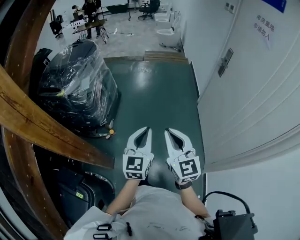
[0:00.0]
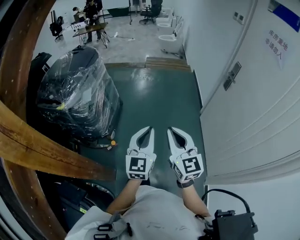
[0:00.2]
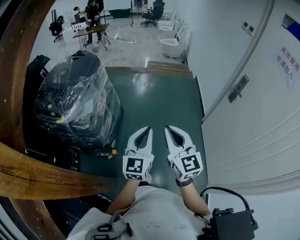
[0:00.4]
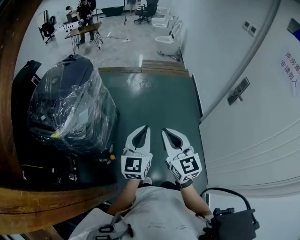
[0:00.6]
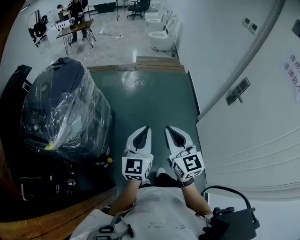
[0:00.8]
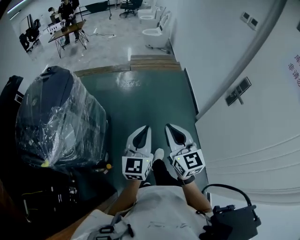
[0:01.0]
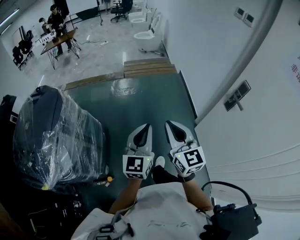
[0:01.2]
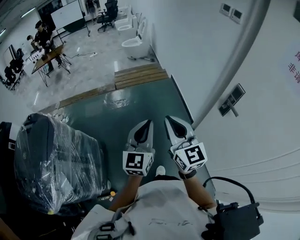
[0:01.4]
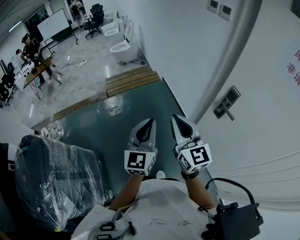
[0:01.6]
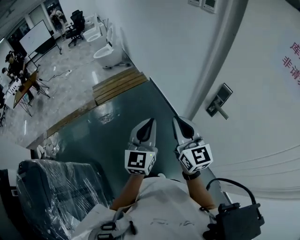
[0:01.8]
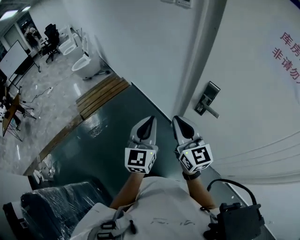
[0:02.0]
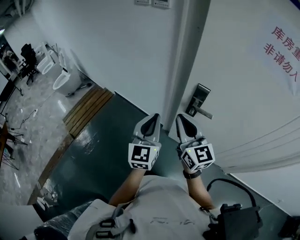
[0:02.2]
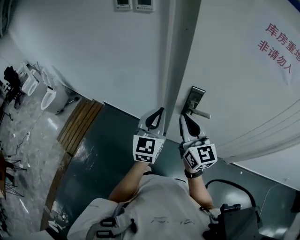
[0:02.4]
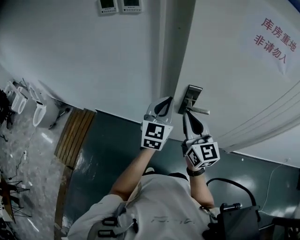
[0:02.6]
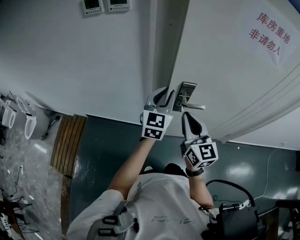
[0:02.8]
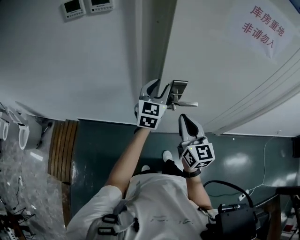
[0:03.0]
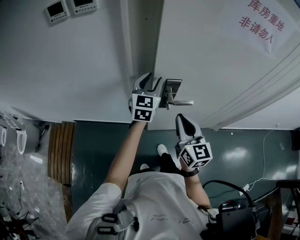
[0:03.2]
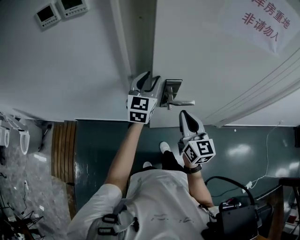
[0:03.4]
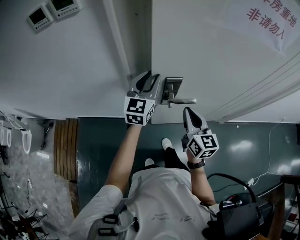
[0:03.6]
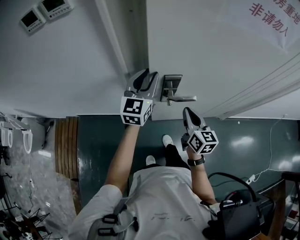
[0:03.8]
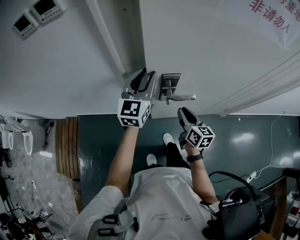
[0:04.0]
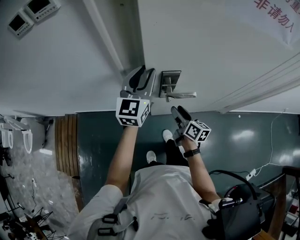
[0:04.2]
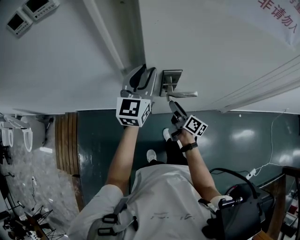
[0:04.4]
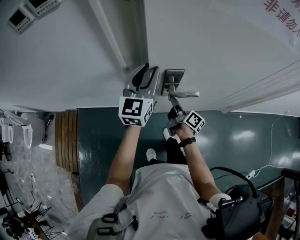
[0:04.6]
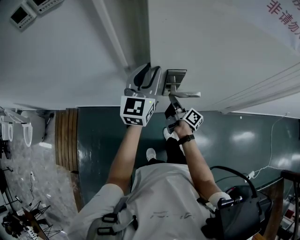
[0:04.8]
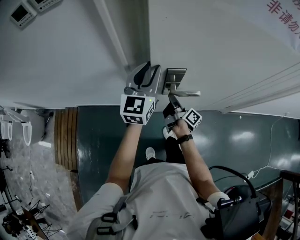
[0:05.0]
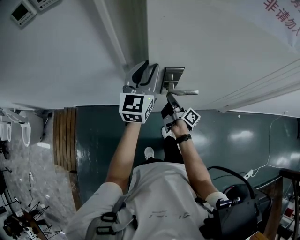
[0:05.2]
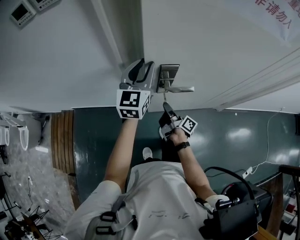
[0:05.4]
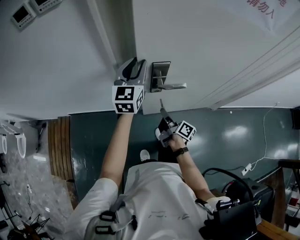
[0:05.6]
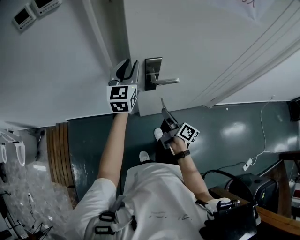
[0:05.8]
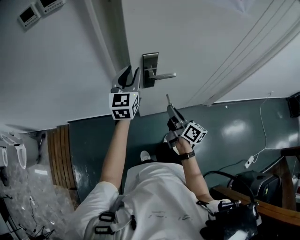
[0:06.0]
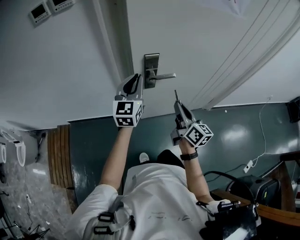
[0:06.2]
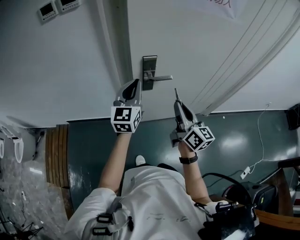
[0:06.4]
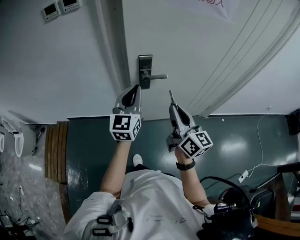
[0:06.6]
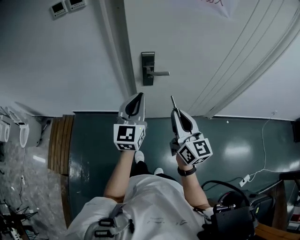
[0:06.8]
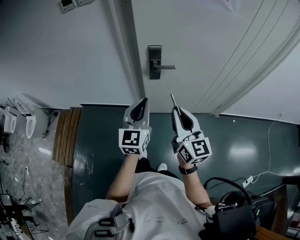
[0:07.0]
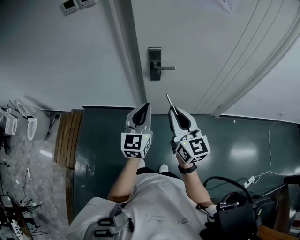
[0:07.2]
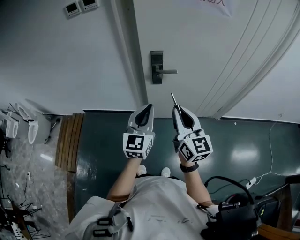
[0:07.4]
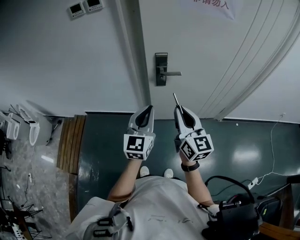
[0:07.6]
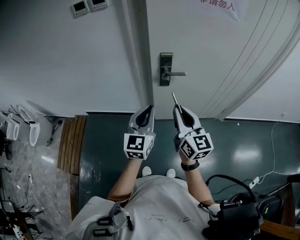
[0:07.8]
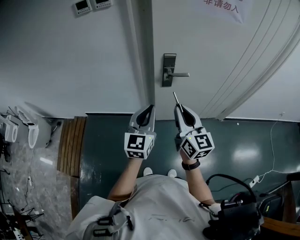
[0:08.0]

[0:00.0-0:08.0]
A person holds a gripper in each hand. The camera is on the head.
0:00.0 to 0:01.6: Both grippers are carried about 70 cm. The left gripper swivels roughly 30 degrees. Meanwhile the right gripper rotates roughly 20 degrees.
0:01.6 to 0:03.2: The left gripper shifts by approximately 50 cm, rotates about 70 degrees, and opens. Meanwhile the right gripper shifts by roughly 30 cm, and rotates some 70 degrees.
0:03.2 to 0:04.8: The right gripper moves downward and forward, roughly 25 cm, rotates around the line of its fingers by roughly 70 degrees, clockwise from behind, and opens up.
0:04.8 to 0:06.4: The right gripper goes about 30 cm upward and backward, and twists some 50 degrees counterclockwise, seen from behind. The left gripper travels backward by roughly 15 cm, and closes.
0:06.4 to 0:08.0: The left gripper shifts approximately 15 cm backward; the right gripper moves to the left and backward, approximately 10 cm.

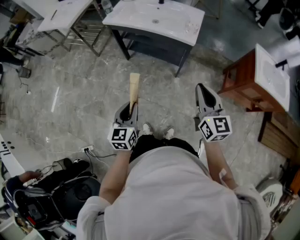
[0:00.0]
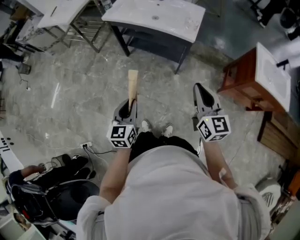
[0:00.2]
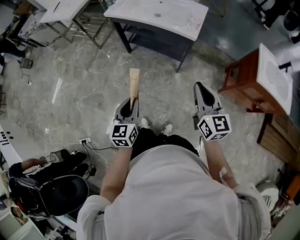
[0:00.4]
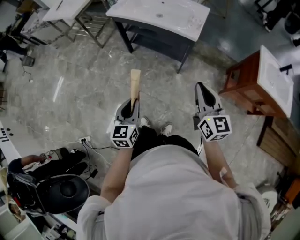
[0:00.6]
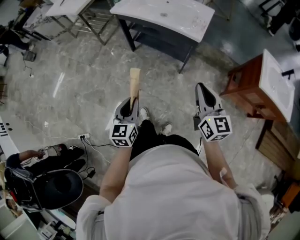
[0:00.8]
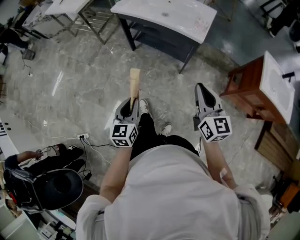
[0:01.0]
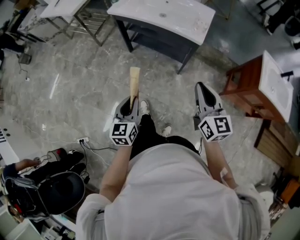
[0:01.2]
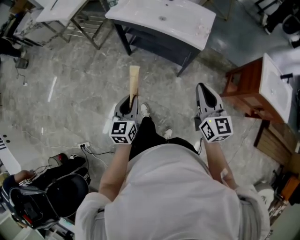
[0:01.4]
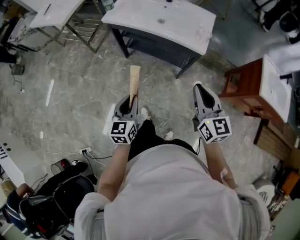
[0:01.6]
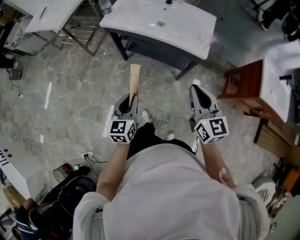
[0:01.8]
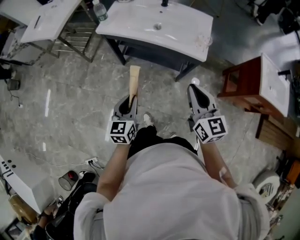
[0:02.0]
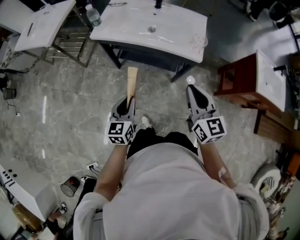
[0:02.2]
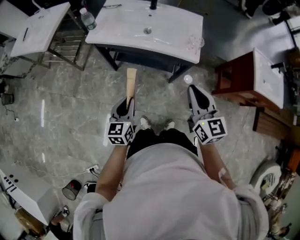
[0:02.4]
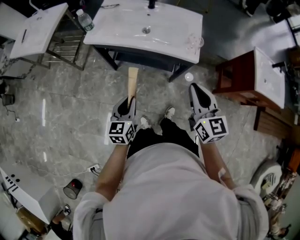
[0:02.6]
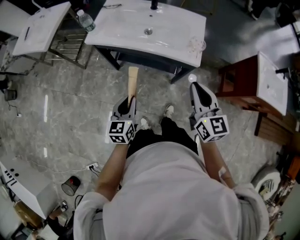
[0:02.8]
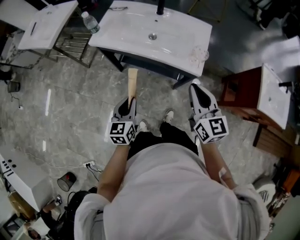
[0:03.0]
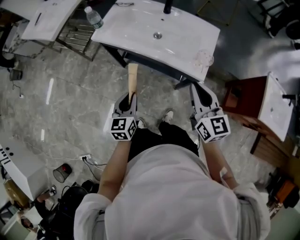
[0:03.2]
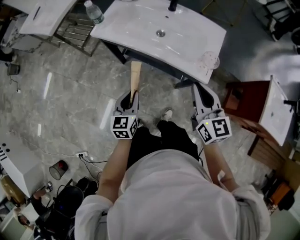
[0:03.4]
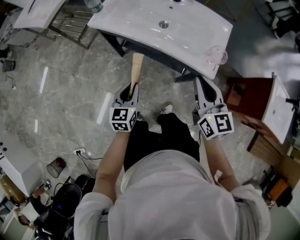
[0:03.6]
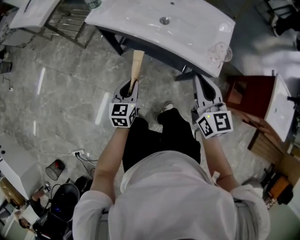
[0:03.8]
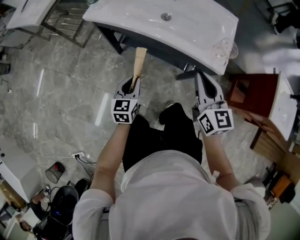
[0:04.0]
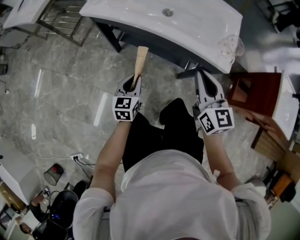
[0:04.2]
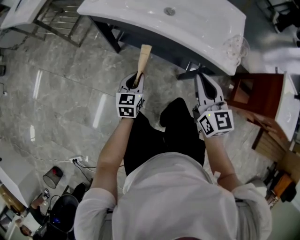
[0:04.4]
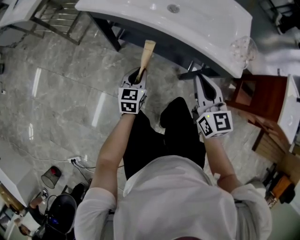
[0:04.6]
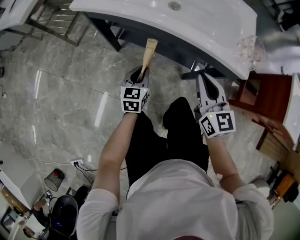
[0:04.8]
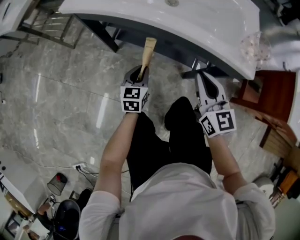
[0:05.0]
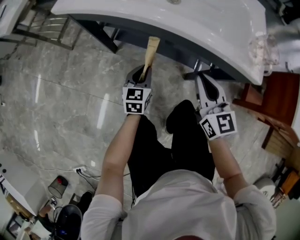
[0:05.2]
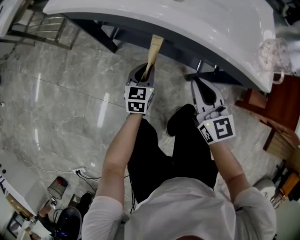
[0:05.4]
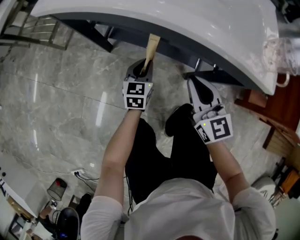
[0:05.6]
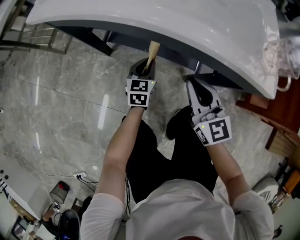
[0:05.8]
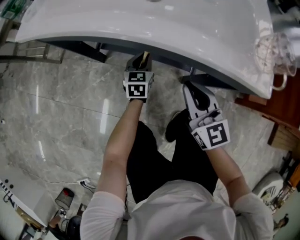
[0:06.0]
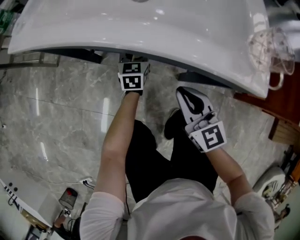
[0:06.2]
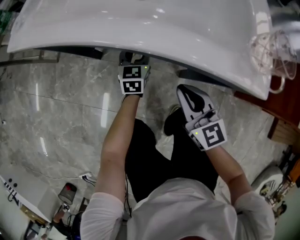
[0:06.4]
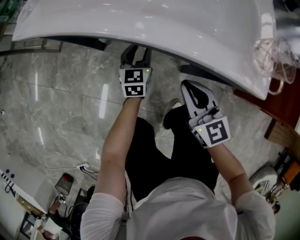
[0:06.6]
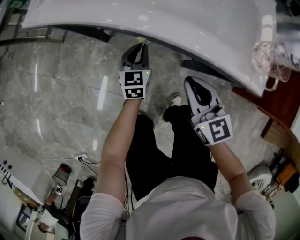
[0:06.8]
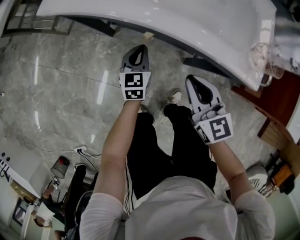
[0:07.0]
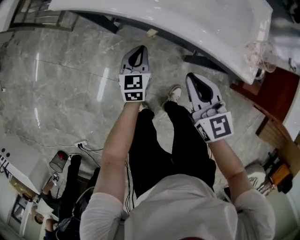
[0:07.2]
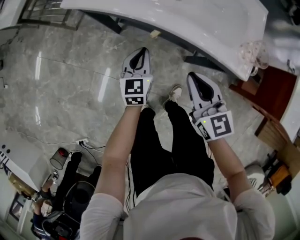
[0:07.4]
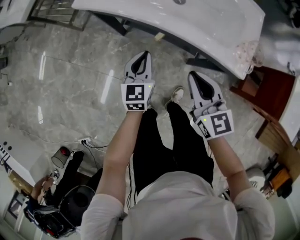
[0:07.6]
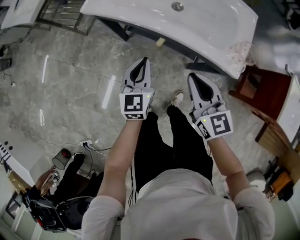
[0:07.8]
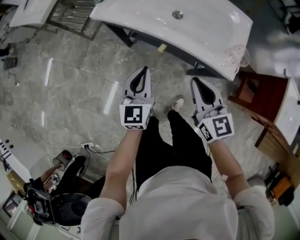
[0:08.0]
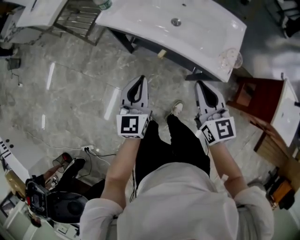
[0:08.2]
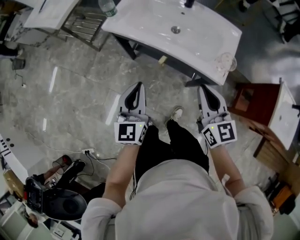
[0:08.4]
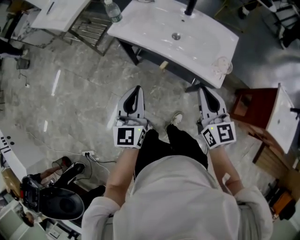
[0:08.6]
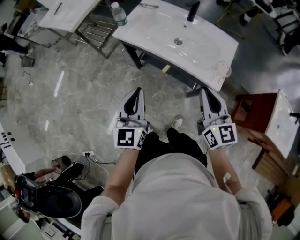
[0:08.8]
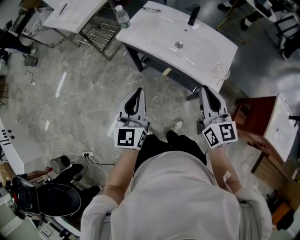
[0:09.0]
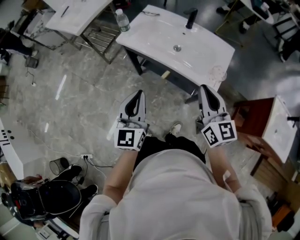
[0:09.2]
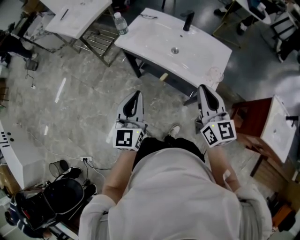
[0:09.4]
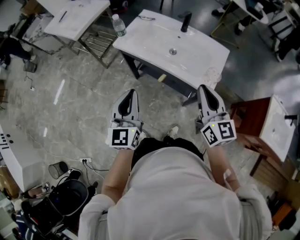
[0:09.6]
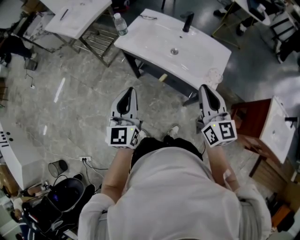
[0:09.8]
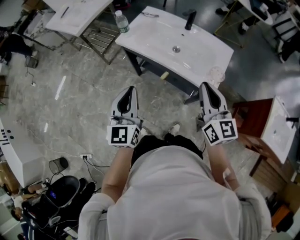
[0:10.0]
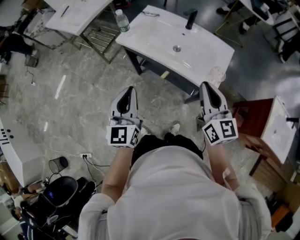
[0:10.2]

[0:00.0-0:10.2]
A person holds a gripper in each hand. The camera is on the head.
0:00.0 to 0:01.4: The grippers both shift forward by roughly 5 cm.
0:01.4 to 0:03.0: The two grippers go approximately 20 cm forward.
0:03.0 to 0:04.4: The two grippers go some 20 cm downward.
0:04.4 to 0:05.8: The left gripper is displaced downward, forward and to the right by approximately 20 cm. The right gripper heads downward, covering approximately 15 cm.
0:05.8 to 0:07.2: Both grippers travel together upward, roughly 15 cm. The left gripper opens, then closes again.
0:07.2 to 0:08.8: The left gripper shifts approximately 40 cm upward and backward, and turns by some 30 degrees; the right gripper moves upward, some 25 cm.
0:08.8 to 0:10.2: The grippers make only small movements.

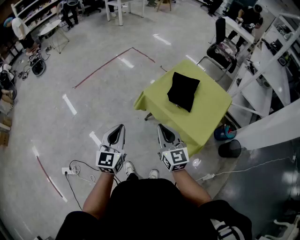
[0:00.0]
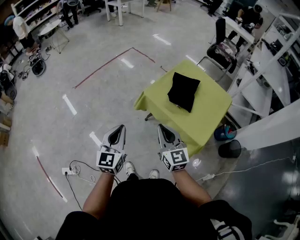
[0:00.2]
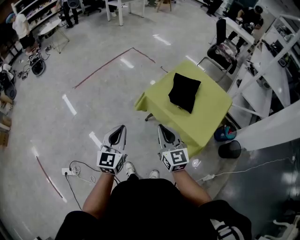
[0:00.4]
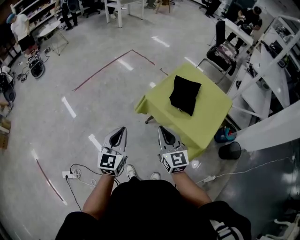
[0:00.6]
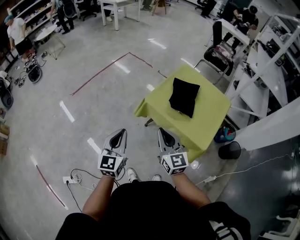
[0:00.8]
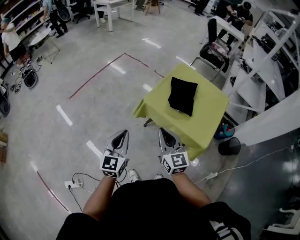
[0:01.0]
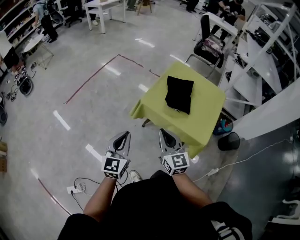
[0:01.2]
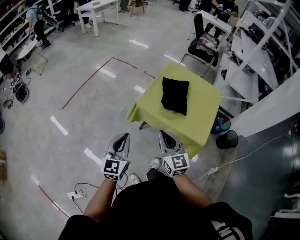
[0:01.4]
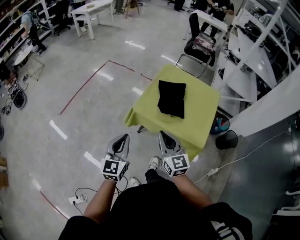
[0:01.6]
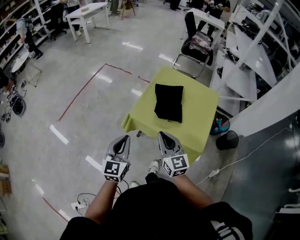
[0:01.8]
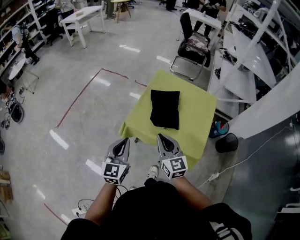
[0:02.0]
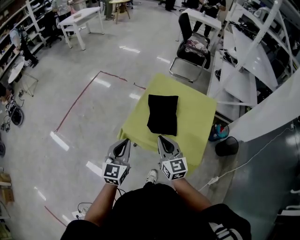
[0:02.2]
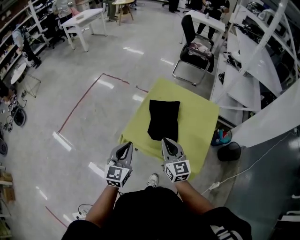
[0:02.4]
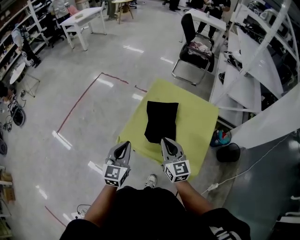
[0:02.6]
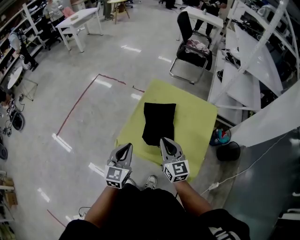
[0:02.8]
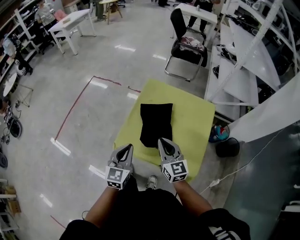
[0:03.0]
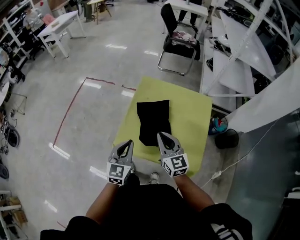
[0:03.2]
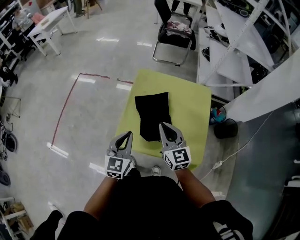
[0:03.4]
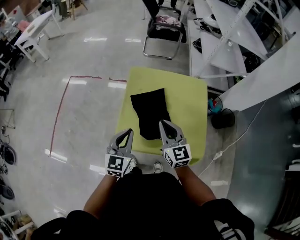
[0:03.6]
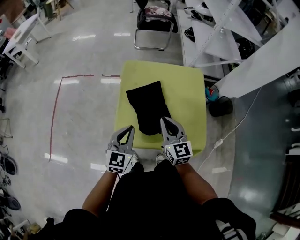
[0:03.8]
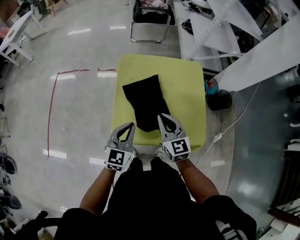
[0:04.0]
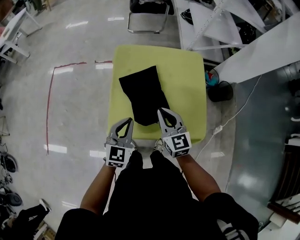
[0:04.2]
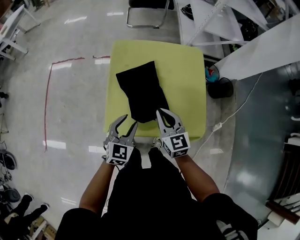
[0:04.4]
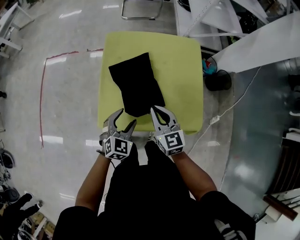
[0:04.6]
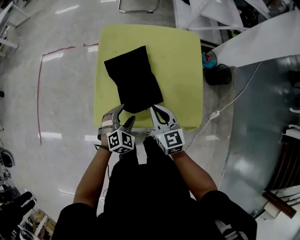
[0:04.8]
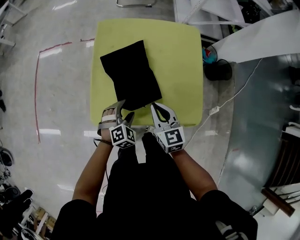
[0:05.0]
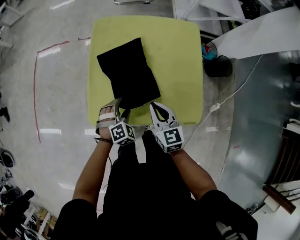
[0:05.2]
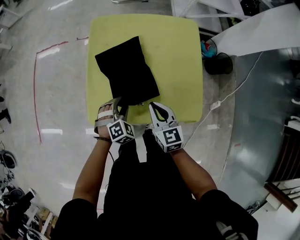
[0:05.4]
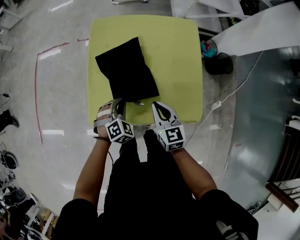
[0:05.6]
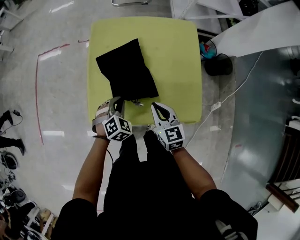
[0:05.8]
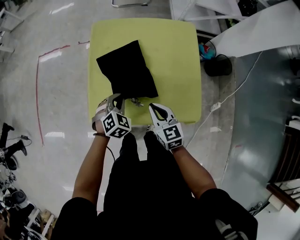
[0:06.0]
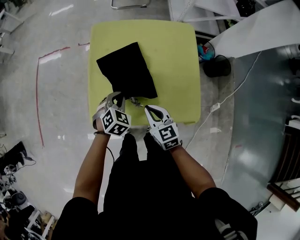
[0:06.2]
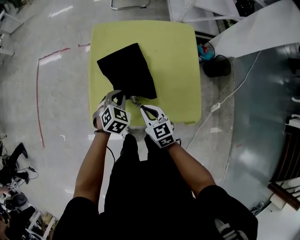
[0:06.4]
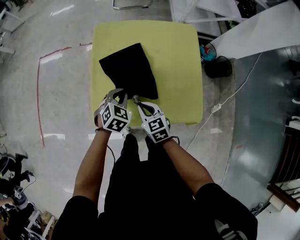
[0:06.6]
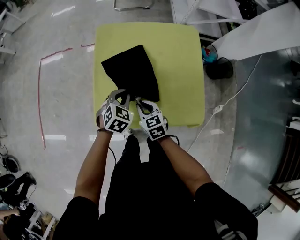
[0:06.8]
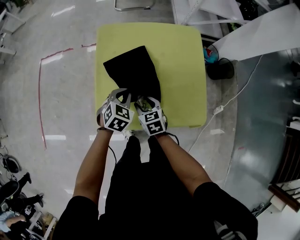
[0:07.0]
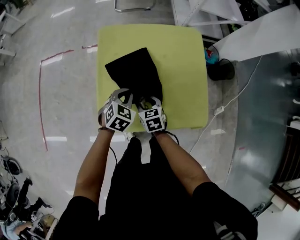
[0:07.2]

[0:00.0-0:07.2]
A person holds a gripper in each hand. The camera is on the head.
0:00.0 to 0:01.4: The left gripper shifts approximately 5 cm forward.
0:01.4 to 0:02.8: The grippers both shift forward and to the right by roughly 25 cm.
0:02.8 to 0:04.4: The right gripper goes roughly 10 cm downward and forward, and rotates about 20 degrees; the left gripper shifts approximately 15 cm downward and forward, turns by some 40 degrees, and opens its fingers.
0:04.4 to 0:05.8: The grippers both shift downward by about 10 cm. The left gripper turns by about 40 degrees, and closes.
0:05.8 to 0:07.2: The right gripper moves downward, to the left and forward, about 15 cm, and opens. The left gripper travels forward by about 5 cm.
